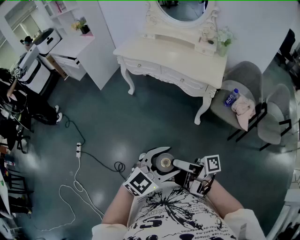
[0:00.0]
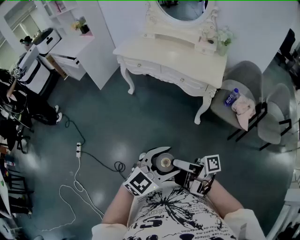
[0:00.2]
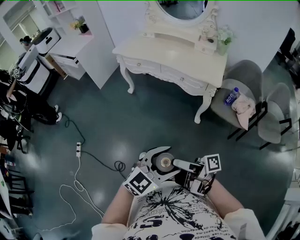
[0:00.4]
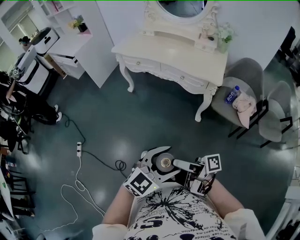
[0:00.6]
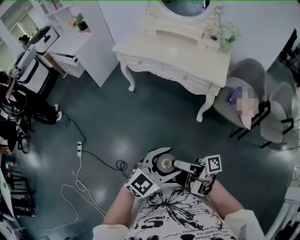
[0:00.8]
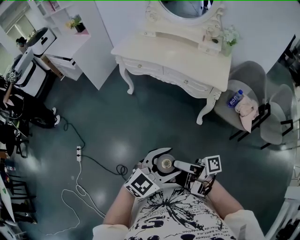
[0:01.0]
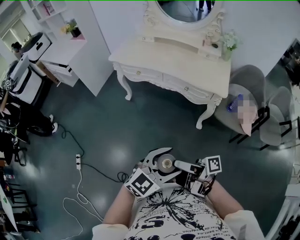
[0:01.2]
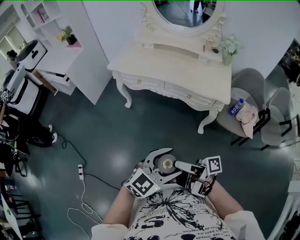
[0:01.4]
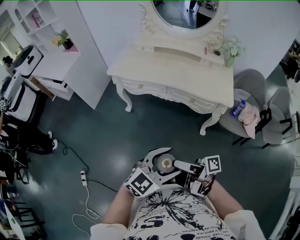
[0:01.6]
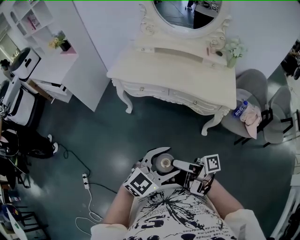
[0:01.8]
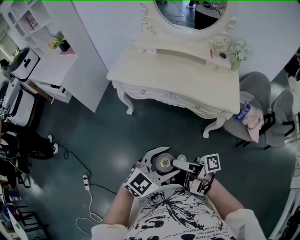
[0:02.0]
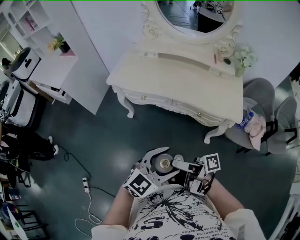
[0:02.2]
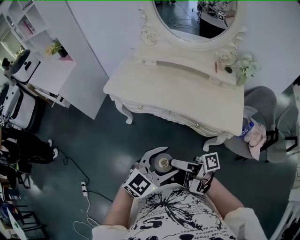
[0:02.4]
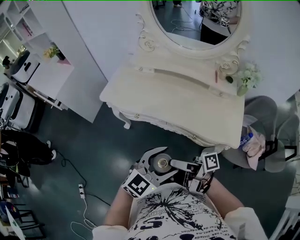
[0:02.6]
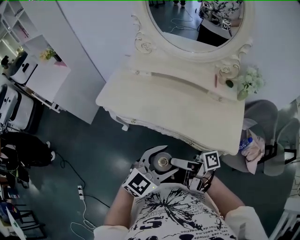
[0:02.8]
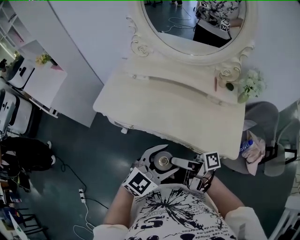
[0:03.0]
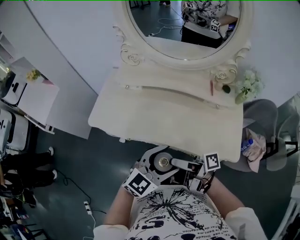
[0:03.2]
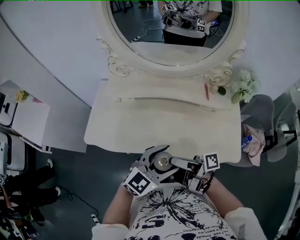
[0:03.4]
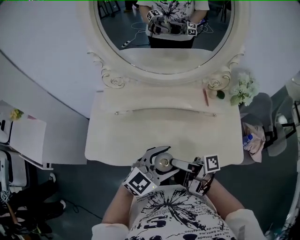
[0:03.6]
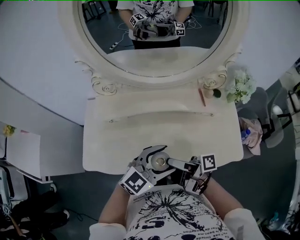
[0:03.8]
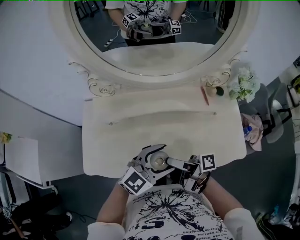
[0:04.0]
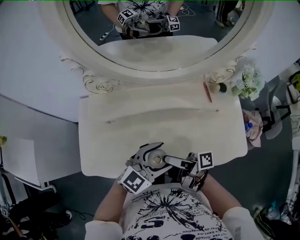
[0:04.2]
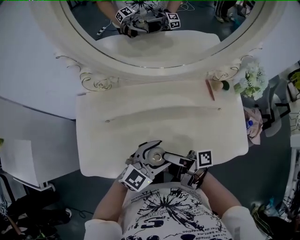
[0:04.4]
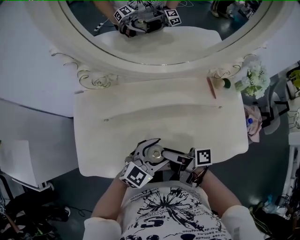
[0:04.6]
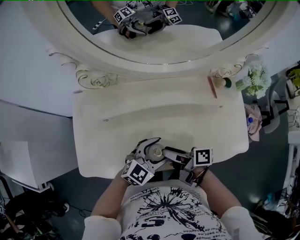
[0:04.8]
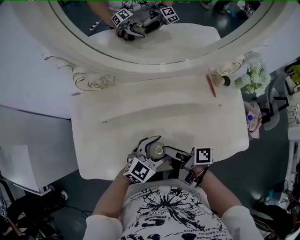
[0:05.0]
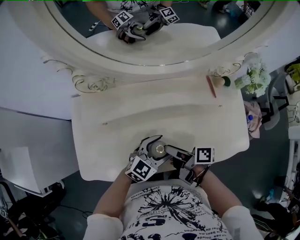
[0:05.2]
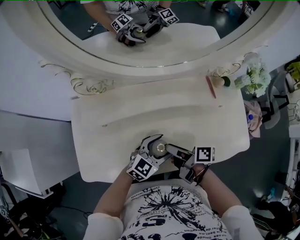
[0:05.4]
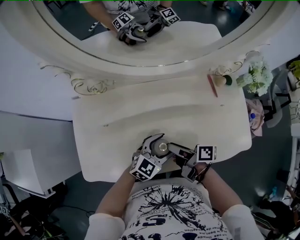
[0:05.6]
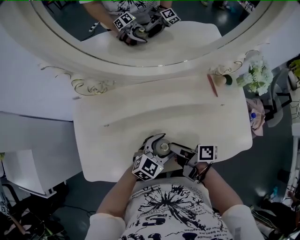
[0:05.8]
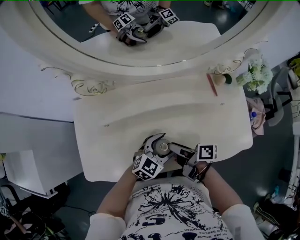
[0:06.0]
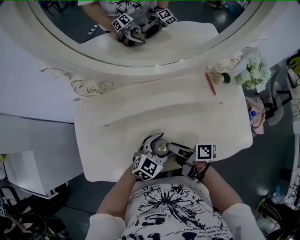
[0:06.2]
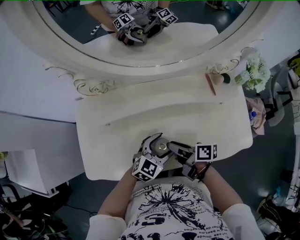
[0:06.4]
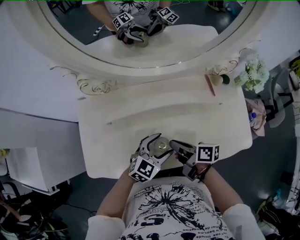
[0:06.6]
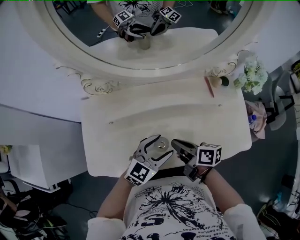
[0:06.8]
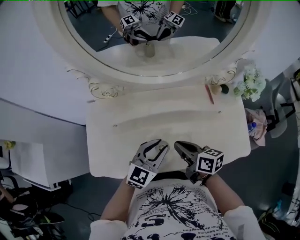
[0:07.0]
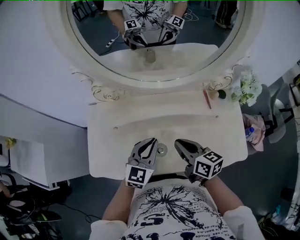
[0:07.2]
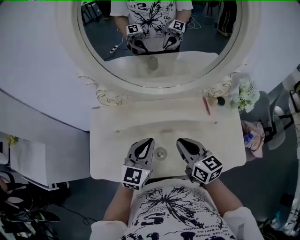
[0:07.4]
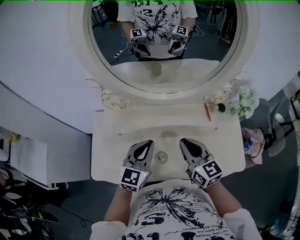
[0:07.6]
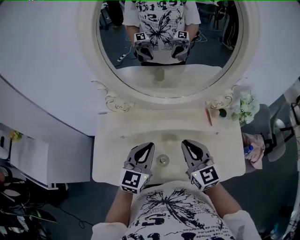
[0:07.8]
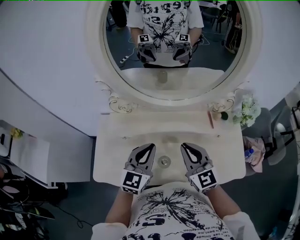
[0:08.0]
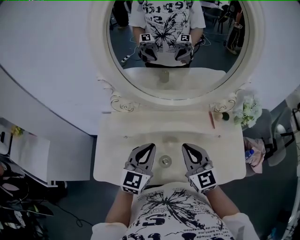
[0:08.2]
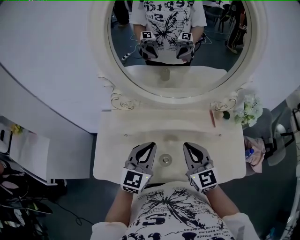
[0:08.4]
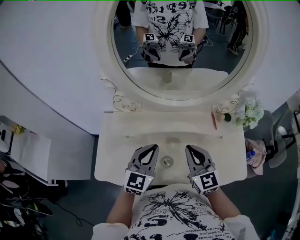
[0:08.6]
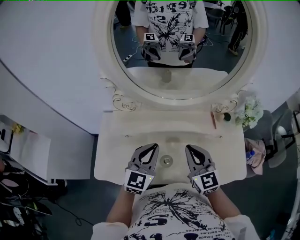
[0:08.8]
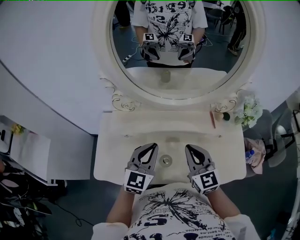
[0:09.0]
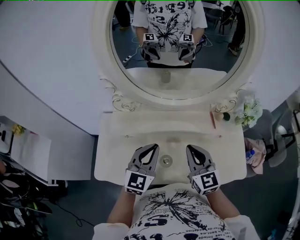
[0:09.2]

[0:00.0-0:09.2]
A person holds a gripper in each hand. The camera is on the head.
0.0 to 1.6 s: The left gripper ends up some 25 cm from where it was.
1.6 to 3.0 s: The left gripper ends up about 35 cm from where it was.
3.0 to 4.6 s: The left gripper shifts by some 30 cm, and swivels some 30 degrees.
4.6 to 6.2 s: The left gripper heads downward, covering some 5 cm.
6.2 to 7.6 s: The left gripper is displaced upward by approximately 20 cm, swivels some 40 degrees, and closes its fingers.

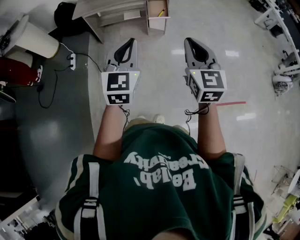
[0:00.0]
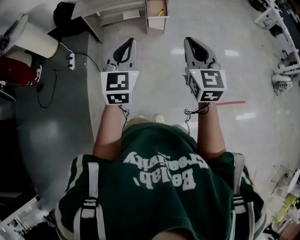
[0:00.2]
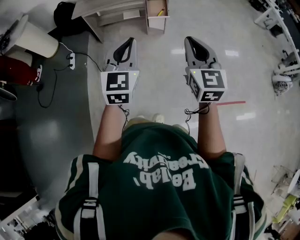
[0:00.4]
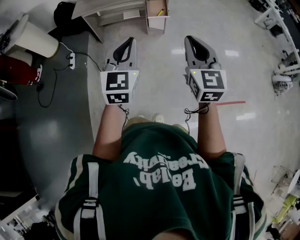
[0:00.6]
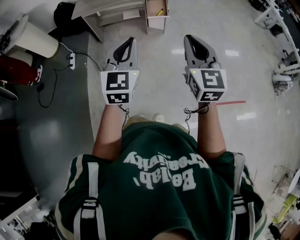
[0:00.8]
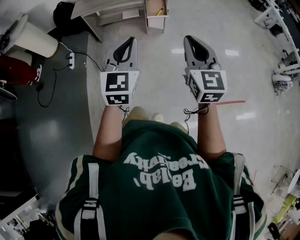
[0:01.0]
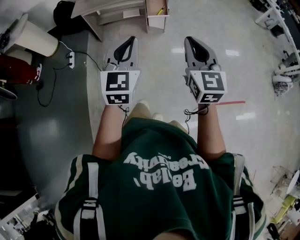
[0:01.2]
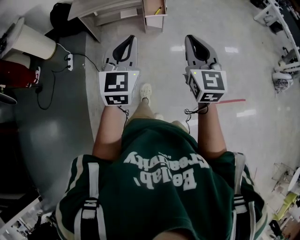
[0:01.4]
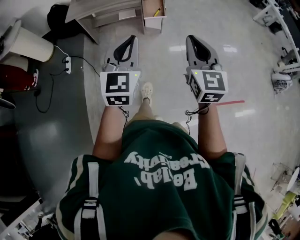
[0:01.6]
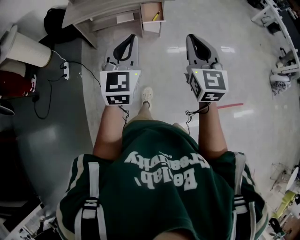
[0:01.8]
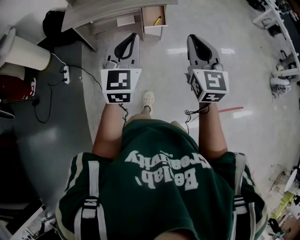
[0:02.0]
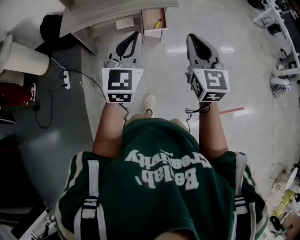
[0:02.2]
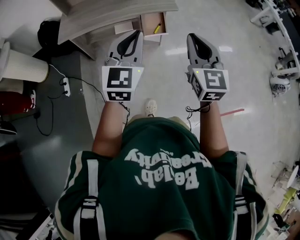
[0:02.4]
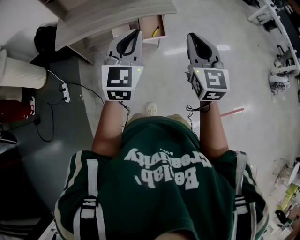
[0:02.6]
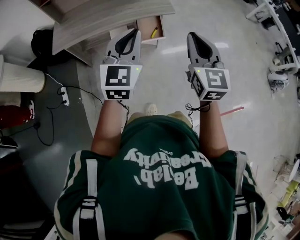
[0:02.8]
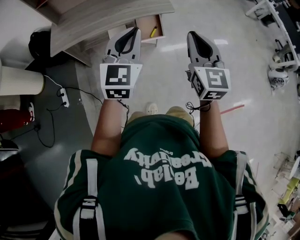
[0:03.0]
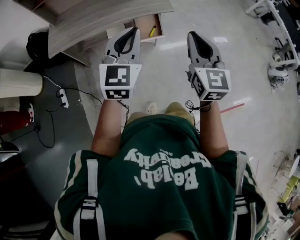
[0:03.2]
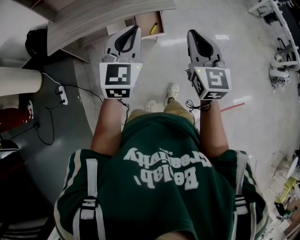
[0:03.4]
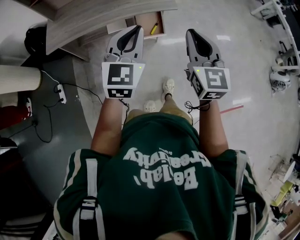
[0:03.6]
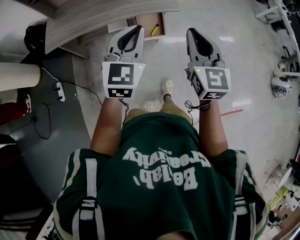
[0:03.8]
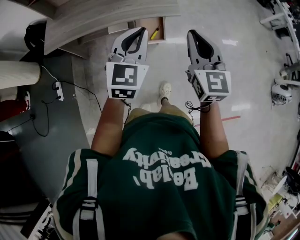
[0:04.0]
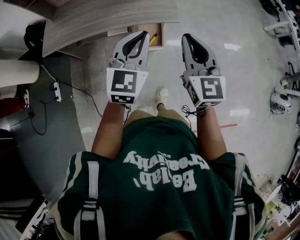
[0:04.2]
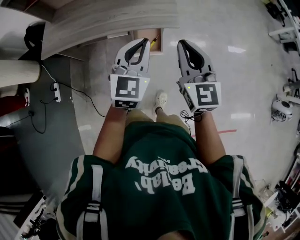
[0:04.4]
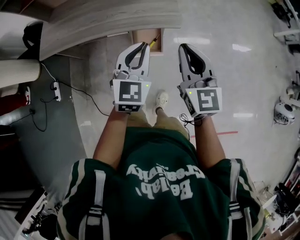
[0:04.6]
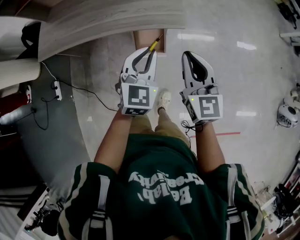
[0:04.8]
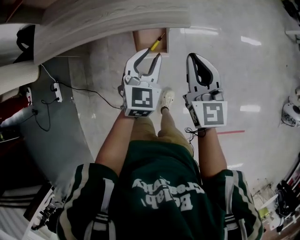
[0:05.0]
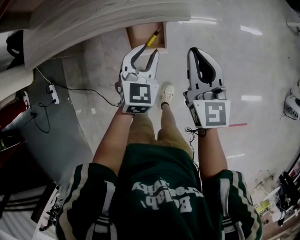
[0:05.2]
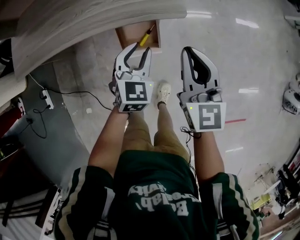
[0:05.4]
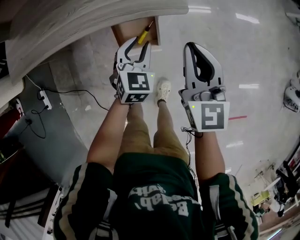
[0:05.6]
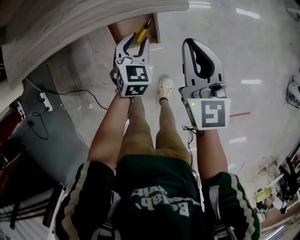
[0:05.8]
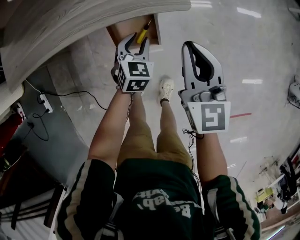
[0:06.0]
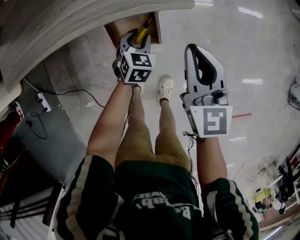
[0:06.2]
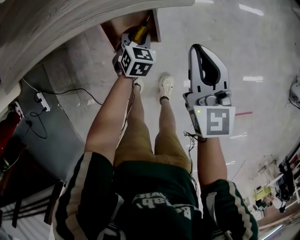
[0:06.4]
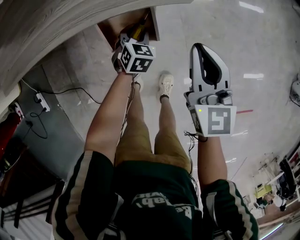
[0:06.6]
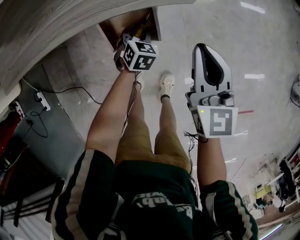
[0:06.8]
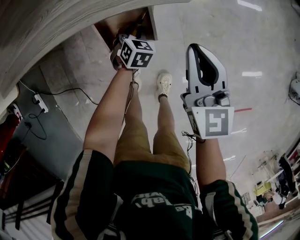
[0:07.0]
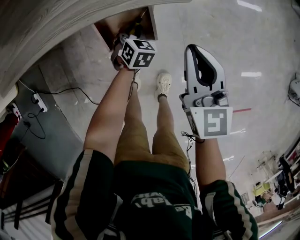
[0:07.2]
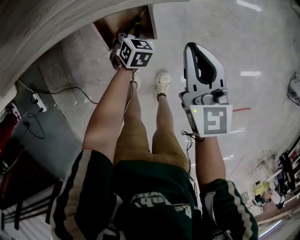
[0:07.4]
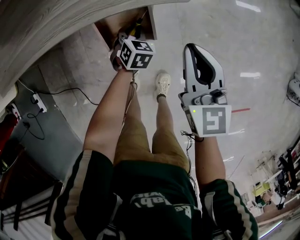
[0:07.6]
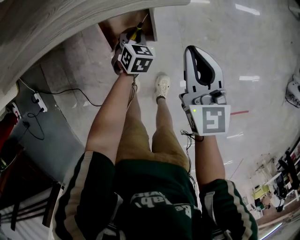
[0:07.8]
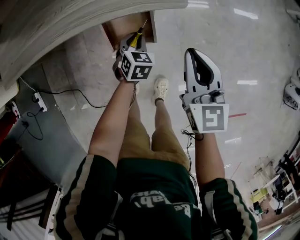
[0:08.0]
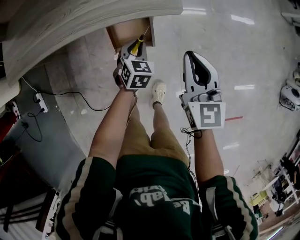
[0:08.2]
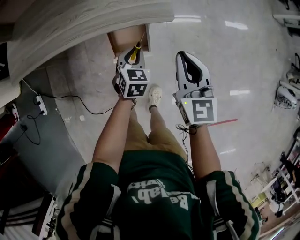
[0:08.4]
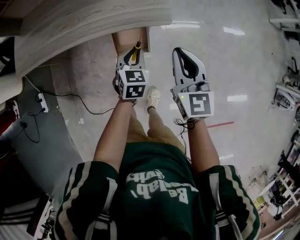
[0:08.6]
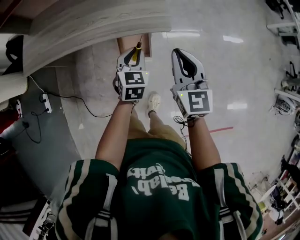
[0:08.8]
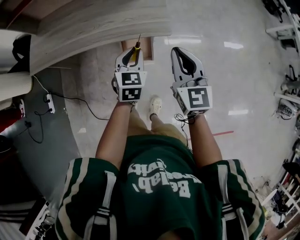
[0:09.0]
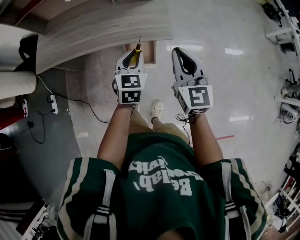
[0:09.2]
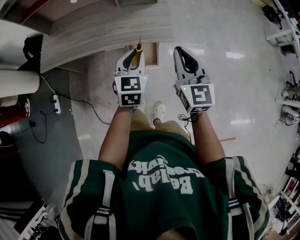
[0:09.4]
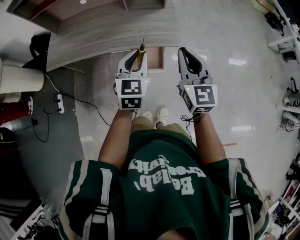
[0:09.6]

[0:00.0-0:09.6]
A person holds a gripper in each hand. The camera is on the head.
0.0 to 1.6 s: Both grippers move forward, some 5 cm.
1.6 to 3.2 s: The two grippers go about 35 cm forward.
3.2 to 4.8 s: The left gripper is displaced forward, downward and to the right by roughly 35 cm, while the right gripper is displaced forward and downward by approximately 30 cm.
4.8 to 6.4 s: The left gripper moves downward, some 40 cm, changes its angle by approximately 30 degrees, and opens its fingers, while the right gripper heads downward and forward, covering roughly 20 cm.
6.4 to 8.0 s: The grippers make only small movements.
8.0 to 9.6 s: The left gripper goes about 40 cm upward, and tilts its fingers some 30 degrees upward. The right gripper shifts some 30 cm upward.

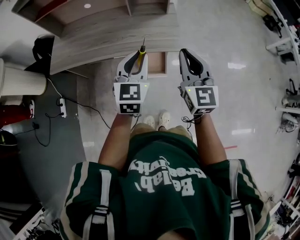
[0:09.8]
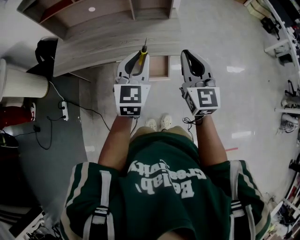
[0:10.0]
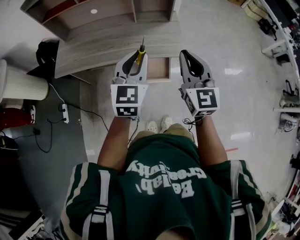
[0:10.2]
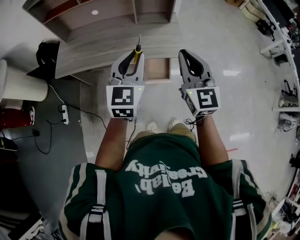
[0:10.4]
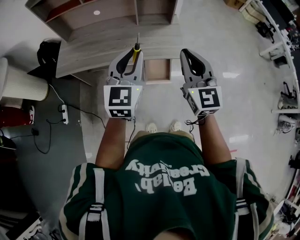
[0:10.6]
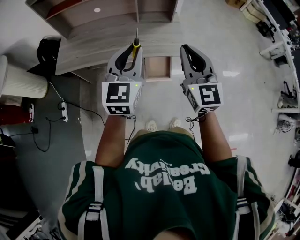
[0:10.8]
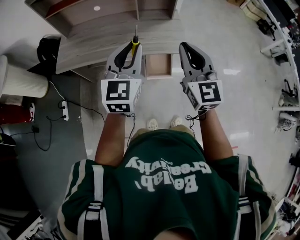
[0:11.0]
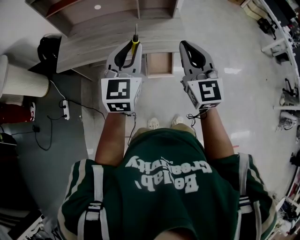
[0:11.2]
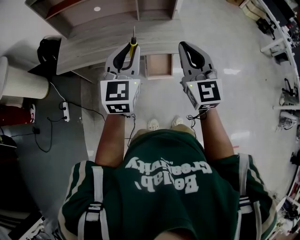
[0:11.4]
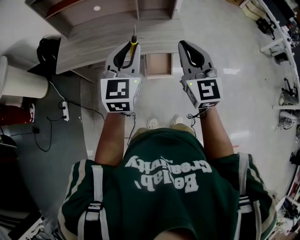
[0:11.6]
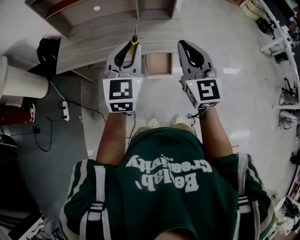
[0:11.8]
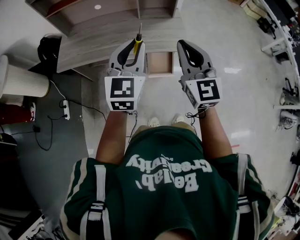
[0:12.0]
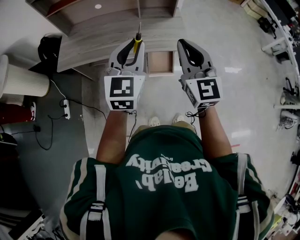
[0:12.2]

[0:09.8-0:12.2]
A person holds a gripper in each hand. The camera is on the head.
9.8 to 11.0 s: The left gripper is displaced upward, to the left and backward by roughly 15 cm. The right gripper heads to the left, upward and backward, covering some 15 cm.
11.0 to 12.2 s: The grippers move only a little.

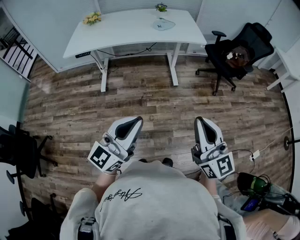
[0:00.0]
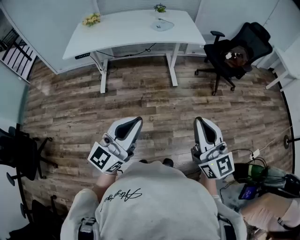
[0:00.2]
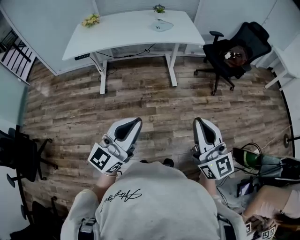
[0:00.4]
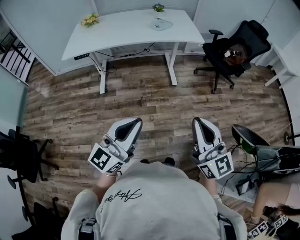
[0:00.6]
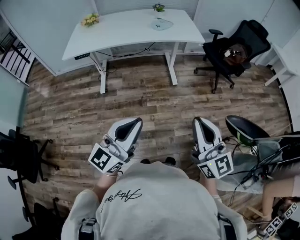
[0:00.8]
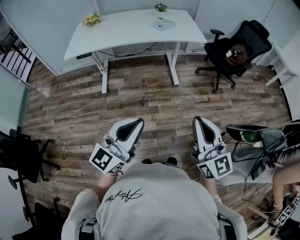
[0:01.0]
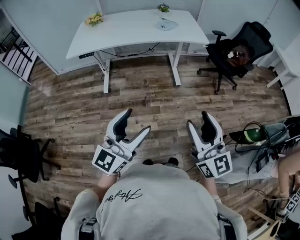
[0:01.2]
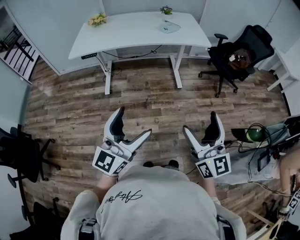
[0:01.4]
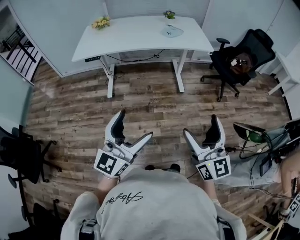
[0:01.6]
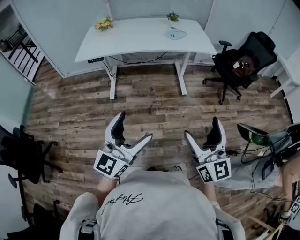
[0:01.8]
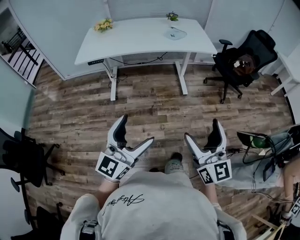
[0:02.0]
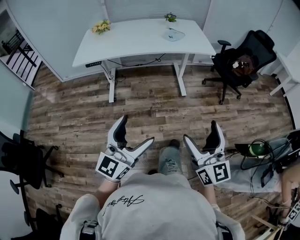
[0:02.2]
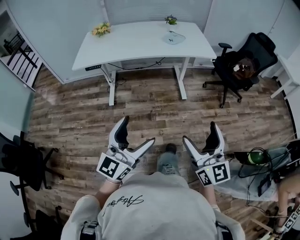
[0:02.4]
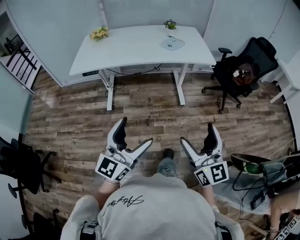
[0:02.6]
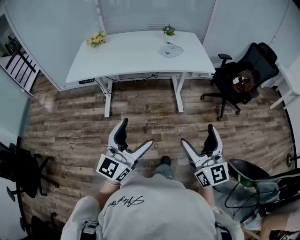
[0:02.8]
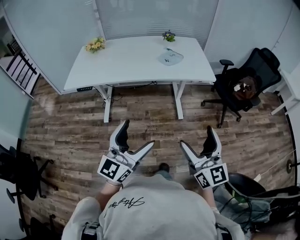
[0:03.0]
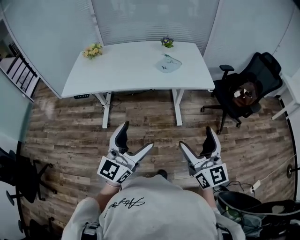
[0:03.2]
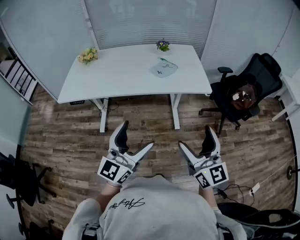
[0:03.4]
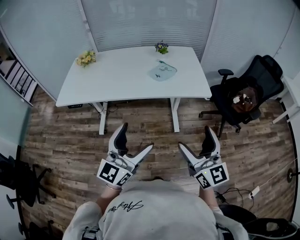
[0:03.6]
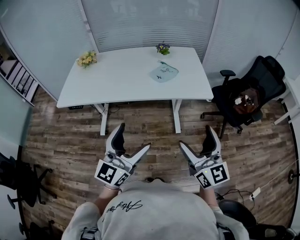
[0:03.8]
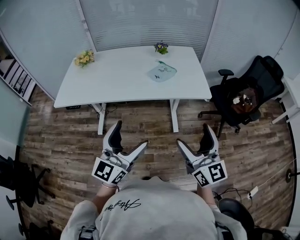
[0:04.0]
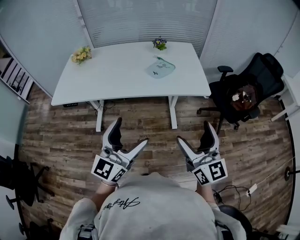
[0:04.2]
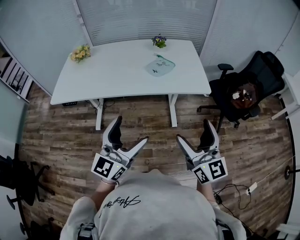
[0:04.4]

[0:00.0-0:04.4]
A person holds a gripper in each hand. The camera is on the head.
0.0 to 1.4 s: The two grippers go about 5 cm to the left. The right gripper opens up. The left gripper opens its fingers.
1.4 to 3.0 s: The grippers both shift forward by about 20 cm.
3.0 to 4.4 s: Both grippers move forward, roughly 15 cm.
